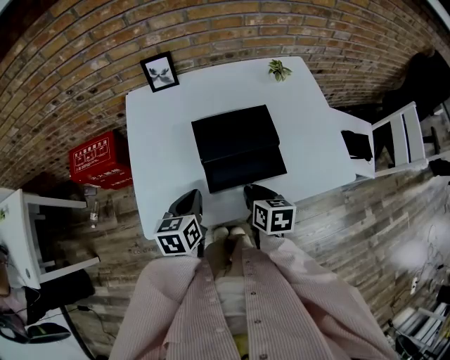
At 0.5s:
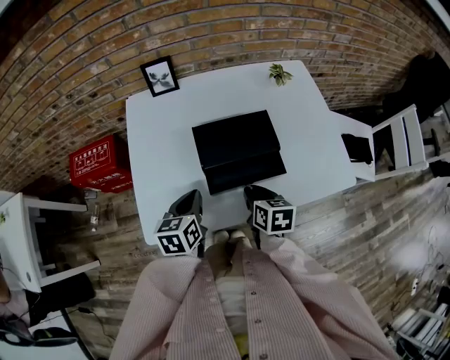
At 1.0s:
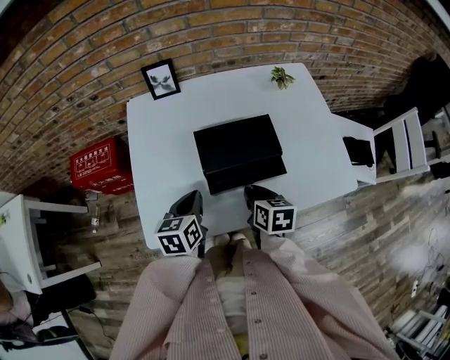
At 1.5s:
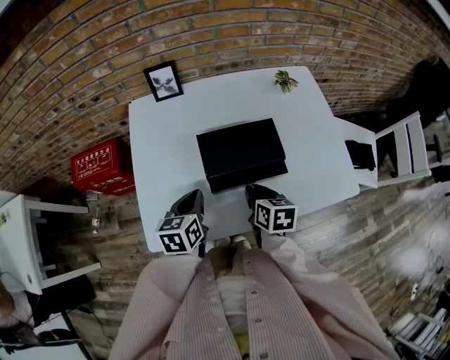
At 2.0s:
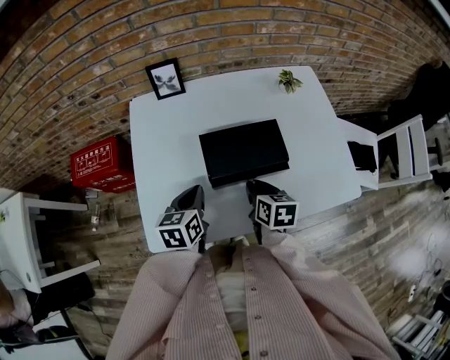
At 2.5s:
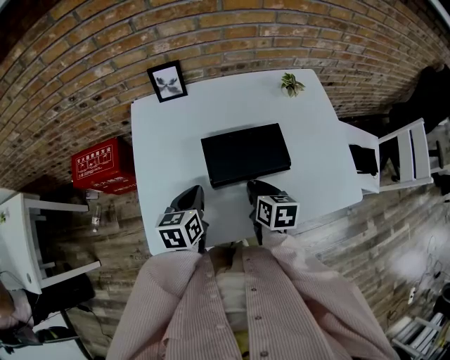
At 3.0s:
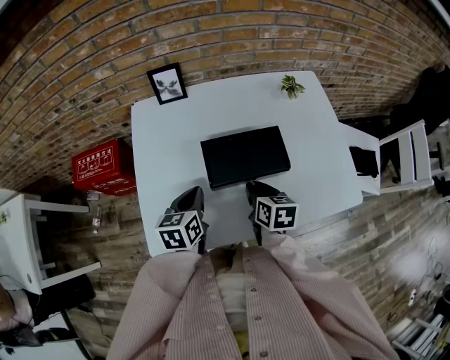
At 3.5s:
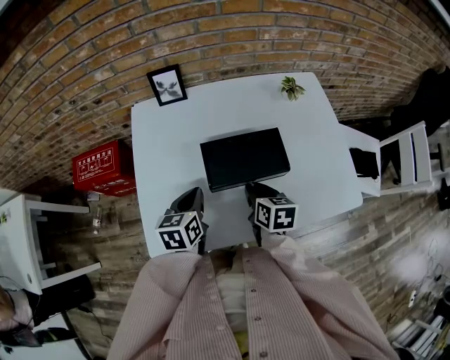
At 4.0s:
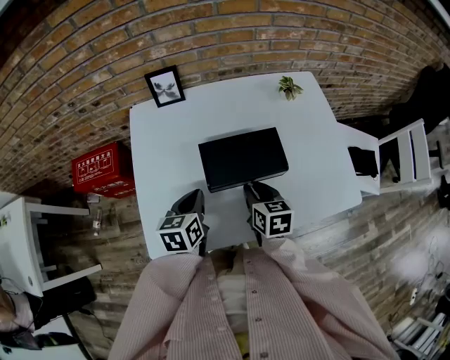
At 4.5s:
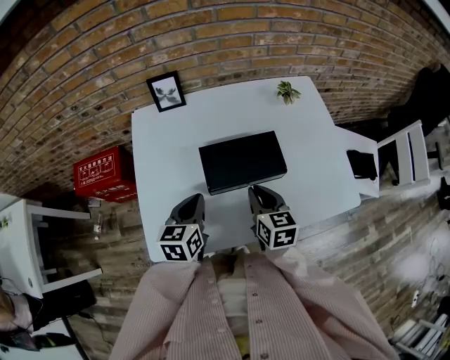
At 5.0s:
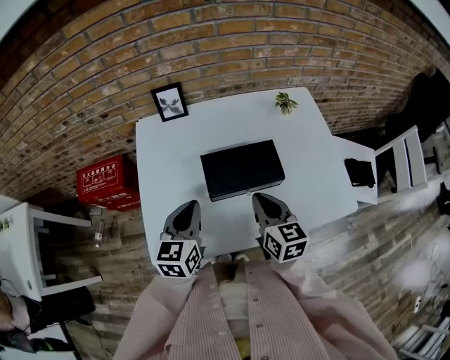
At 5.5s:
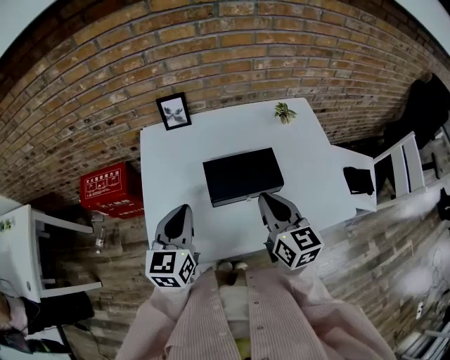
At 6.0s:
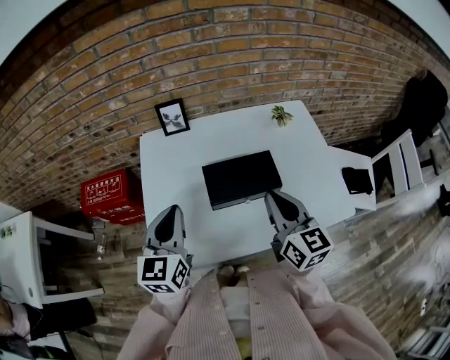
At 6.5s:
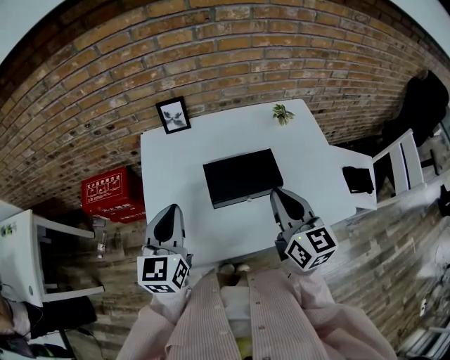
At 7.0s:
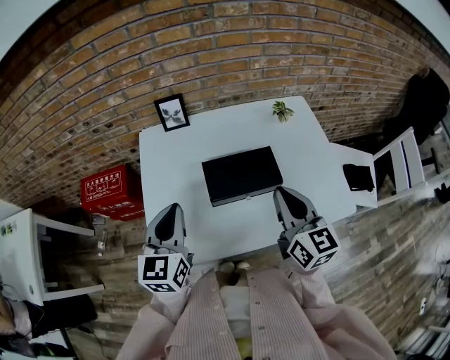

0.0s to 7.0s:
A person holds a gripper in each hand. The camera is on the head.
0.0s to 2.0s: Both grippers move forward, about 5 cm.
2.0s to 3.5s: The grippers make only small movements.
3.5s to 5.0s: Both grippers travel together upward, roughly 10 cm. The right gripper rotates some 20 degrees.
5.0s to 7.0s: The grippers both shift upward by roughly 10 cm.

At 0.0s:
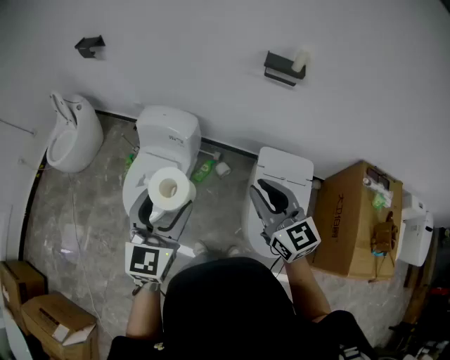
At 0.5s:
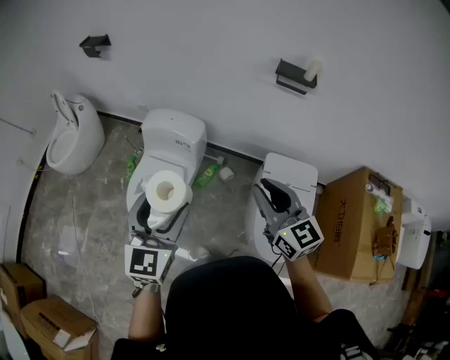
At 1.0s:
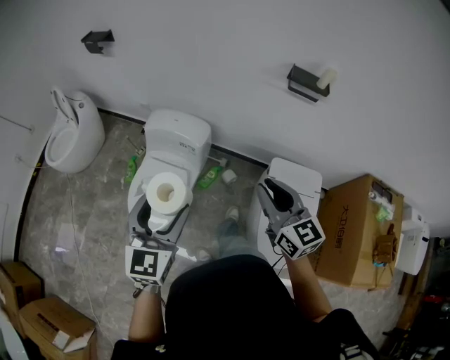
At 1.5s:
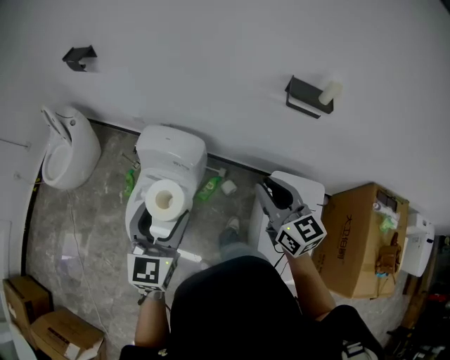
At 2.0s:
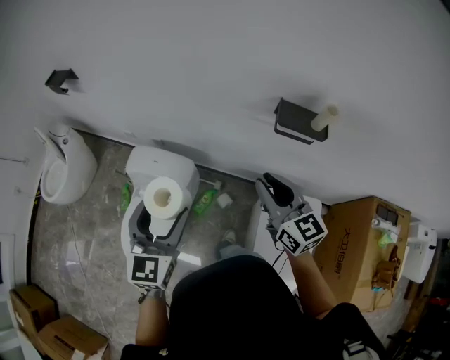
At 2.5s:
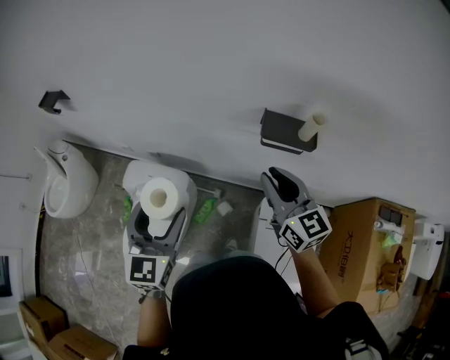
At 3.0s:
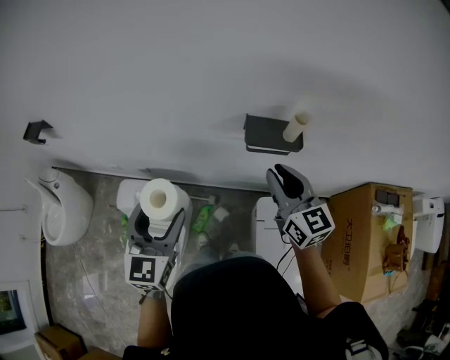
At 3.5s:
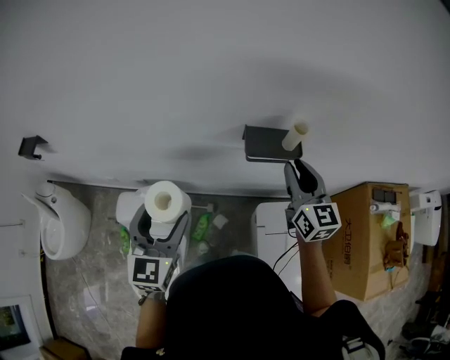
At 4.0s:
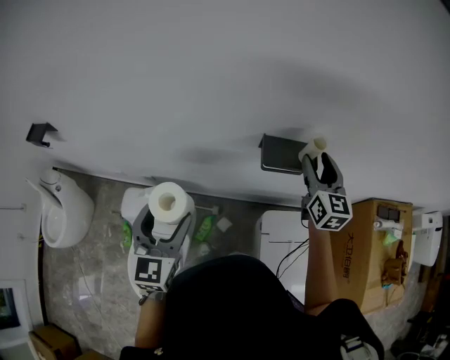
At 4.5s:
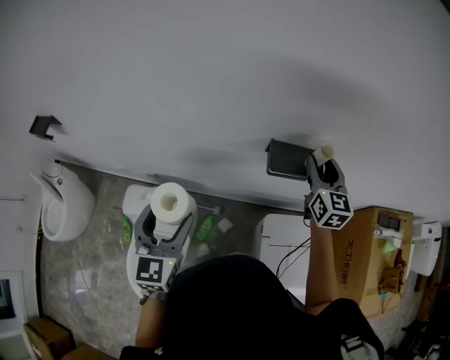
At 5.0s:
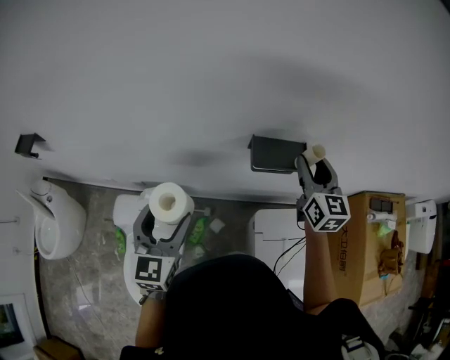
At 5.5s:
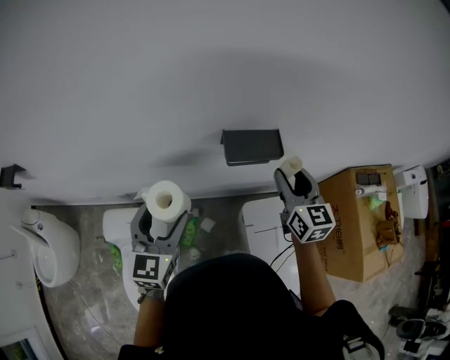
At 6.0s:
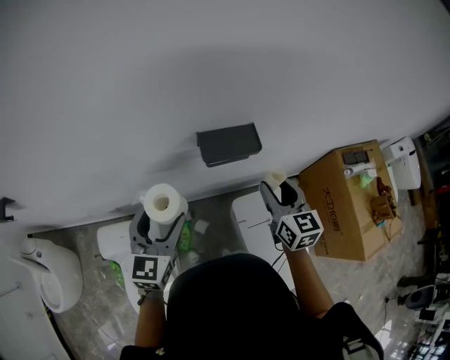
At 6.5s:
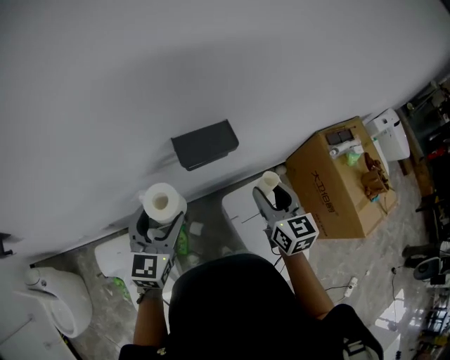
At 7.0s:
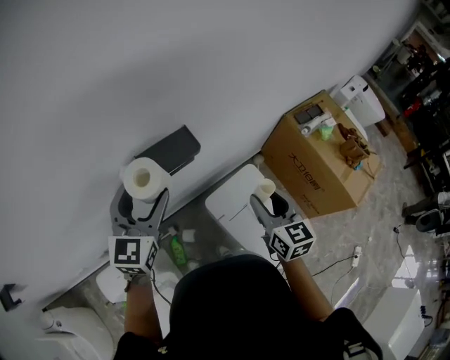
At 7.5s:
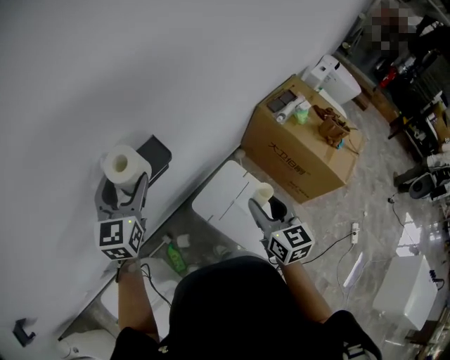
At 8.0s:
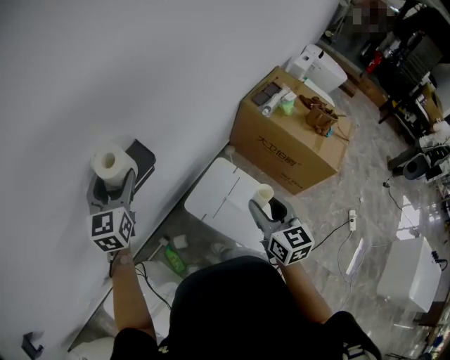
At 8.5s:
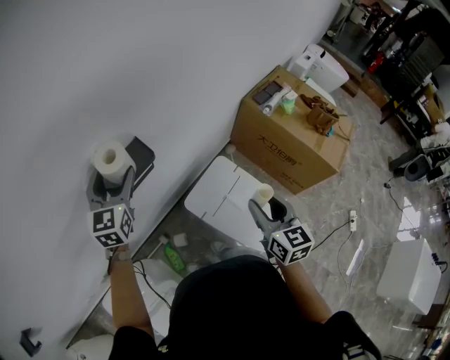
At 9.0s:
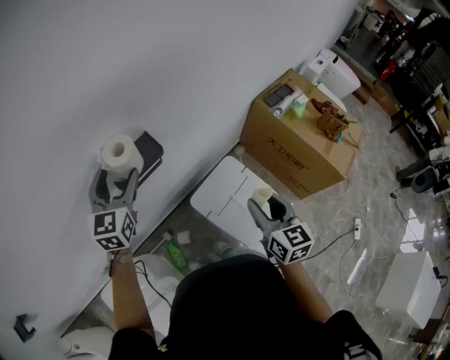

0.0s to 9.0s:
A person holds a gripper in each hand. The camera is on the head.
0.0s to 2.0s: The grippers both shift forward by about 35 cm.
2.0s to 4.5s: The right gripper travels forward and to the right by some 30 cm, swivels about 40 degrees, and opens, while the left gripper moves forward, about 15 cm.
4.5s to 7.0s: The left gripper changes place by approximately 25 cm, and turns by roughly 40 degrees, while the right gripper moves roughly 25 cm, and changes its angle by some 30 degrees.
7.0s to 9.0s: The left gripper goes some 5 cm forward. Meanwhile the right gripper moves to the right and backward, roughly 10 cm.

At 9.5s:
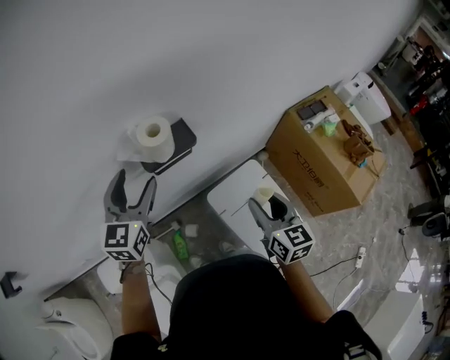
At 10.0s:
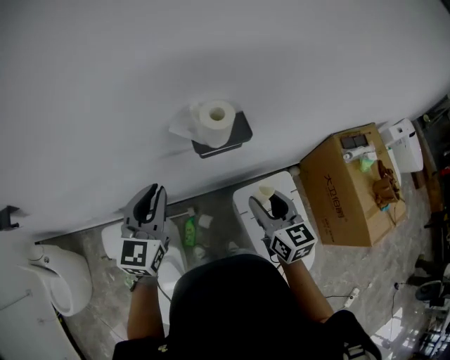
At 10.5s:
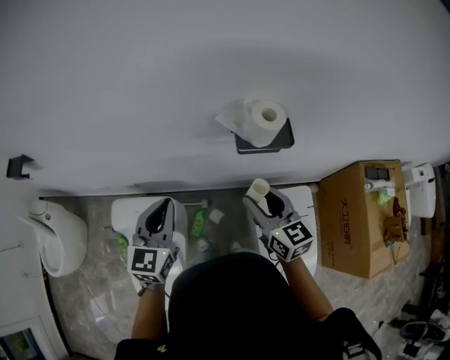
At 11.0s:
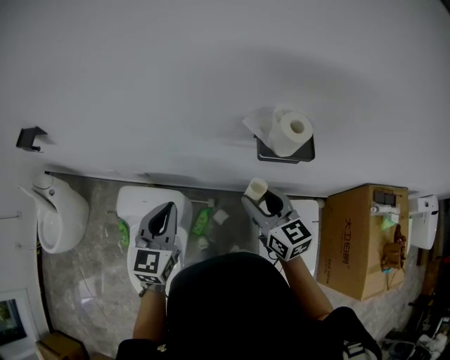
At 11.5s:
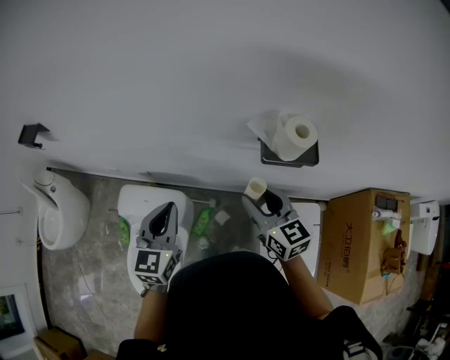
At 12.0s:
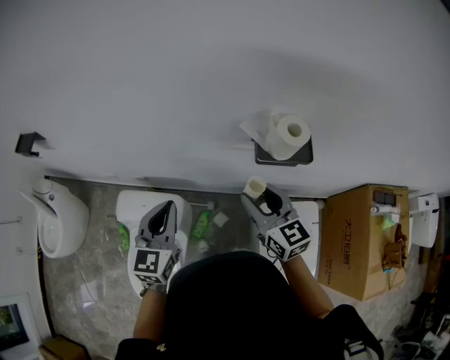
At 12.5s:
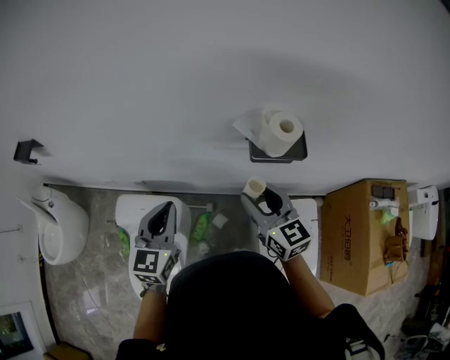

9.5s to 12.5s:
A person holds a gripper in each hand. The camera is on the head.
9.5s to 11.0s: The left gripper moves approximately 25 cm, swivels about 30 degrees, and closes its fingers, while the right gripper ends up some 25 cm from where it was, and turns by about 50 degrees.
11.0s to 12.5s: The grippers stay close to where they were, moving slightly.

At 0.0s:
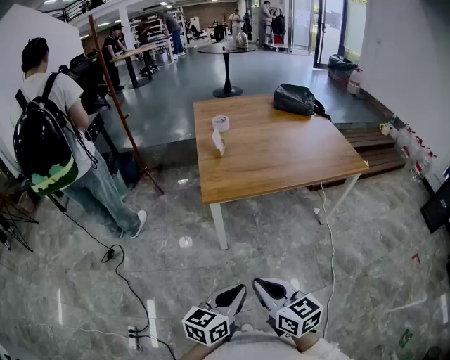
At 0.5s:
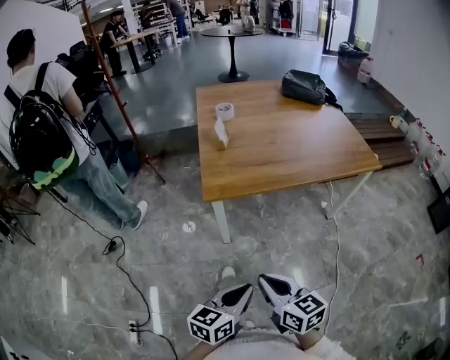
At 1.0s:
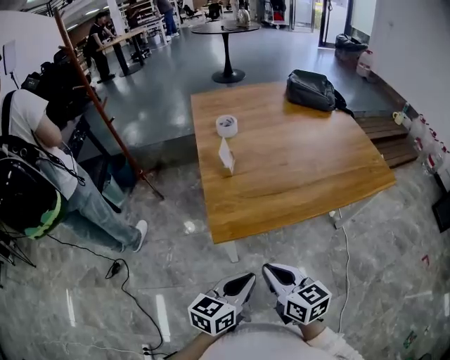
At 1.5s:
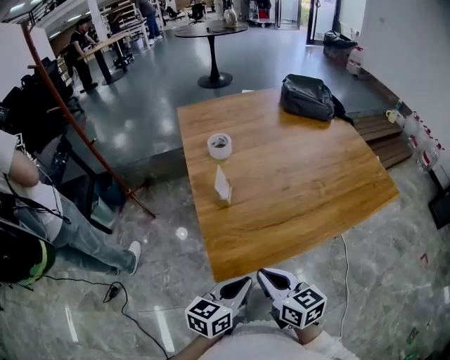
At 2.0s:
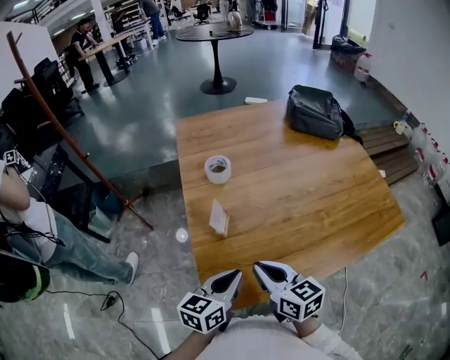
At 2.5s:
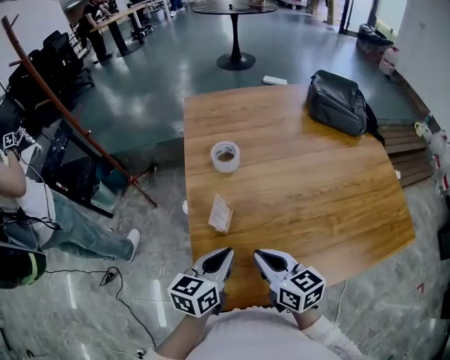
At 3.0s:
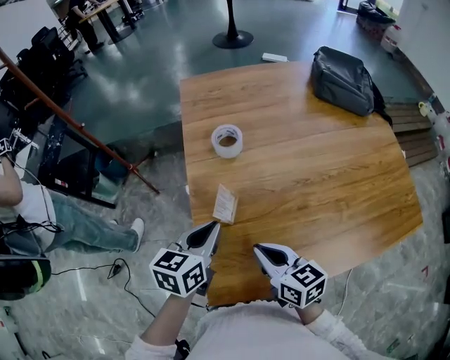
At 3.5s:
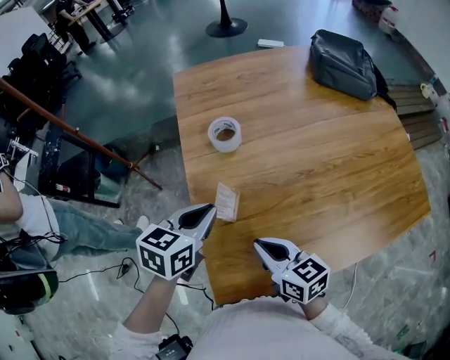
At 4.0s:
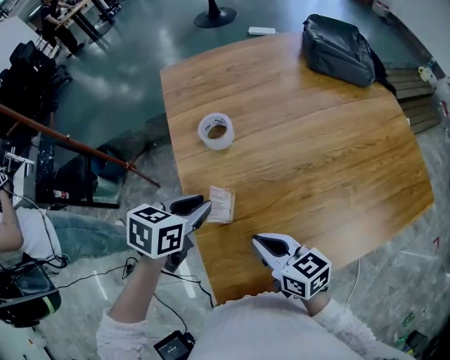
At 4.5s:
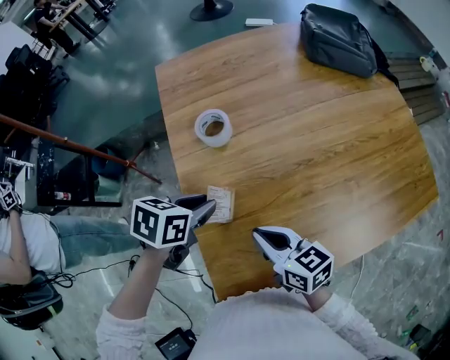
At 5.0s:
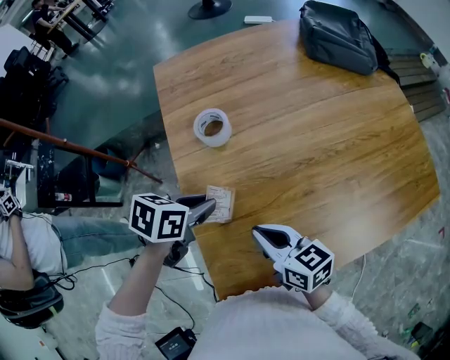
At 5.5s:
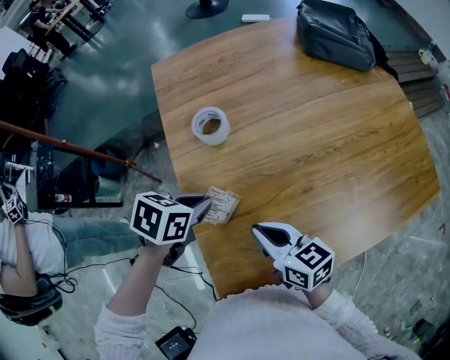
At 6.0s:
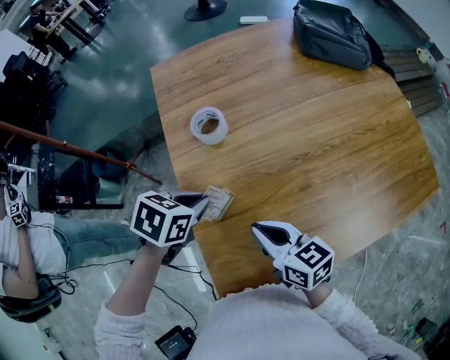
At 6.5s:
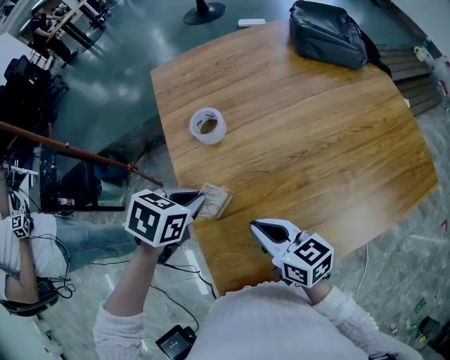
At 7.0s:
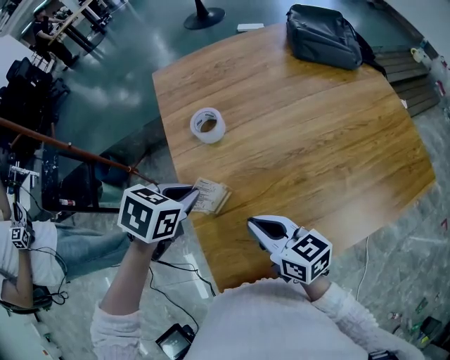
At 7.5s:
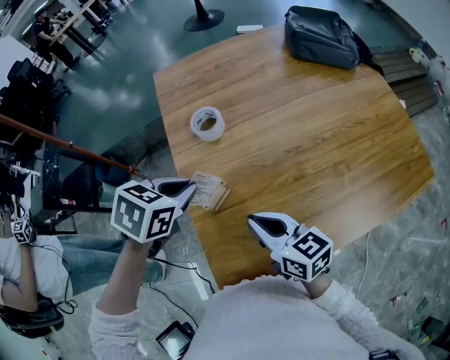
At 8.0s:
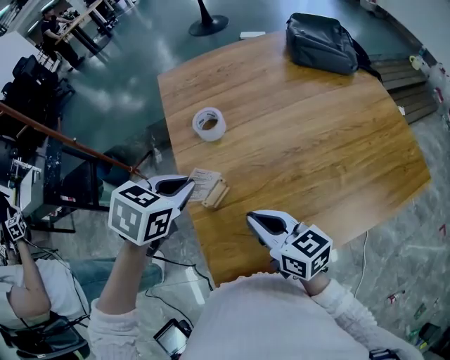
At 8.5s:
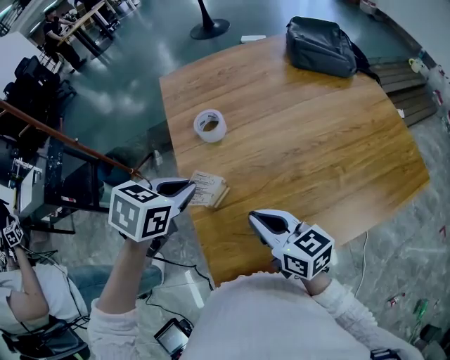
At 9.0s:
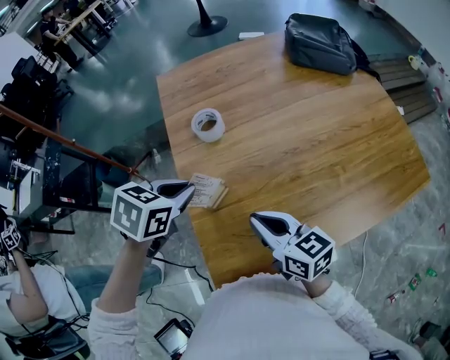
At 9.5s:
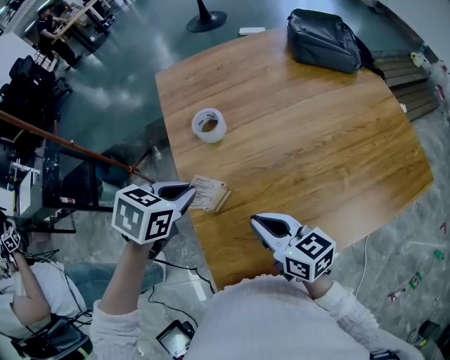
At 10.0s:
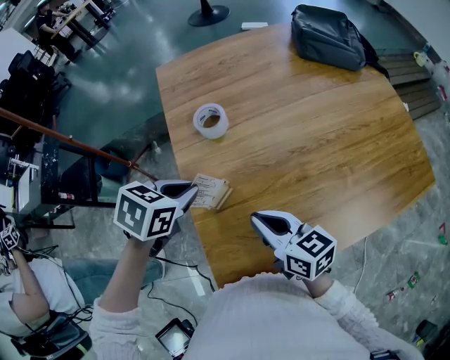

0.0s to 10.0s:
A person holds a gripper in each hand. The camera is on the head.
0.0s to 2.0s: Both grippers are carried forward, some 50 cm.
2.0s to 4.0s: The left gripper moves forward, some 20 cm, and changes its angle by about 30 degrees. Meanwhile the right gripper heads forward and downward, covering some 10 cm.
4.0s to 6.0s: The grippers stay close to where they were, moving slightly.
6.0s to 8.0s: The right gripper ends up some 5 cm from where it was; the left gripper shifts roughly 10 cm upward.
8.0s to 10.0s: The grippers stay close to where they were, moving slightly.
